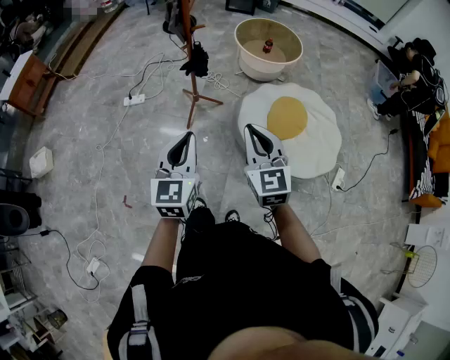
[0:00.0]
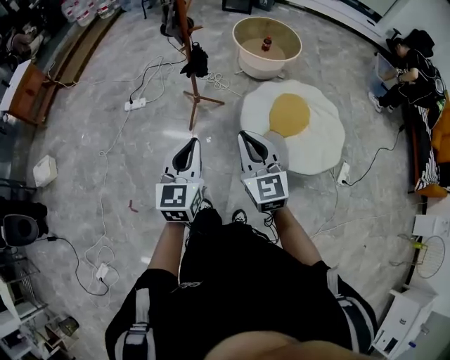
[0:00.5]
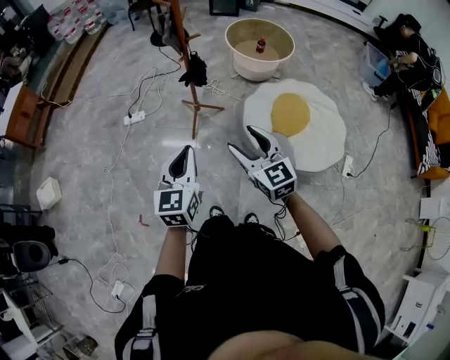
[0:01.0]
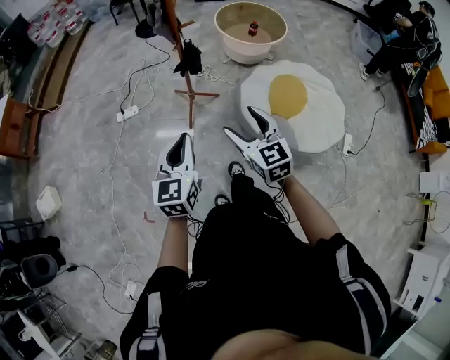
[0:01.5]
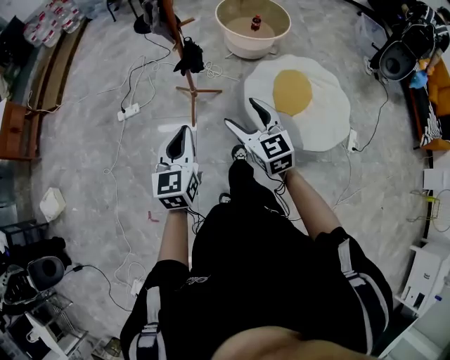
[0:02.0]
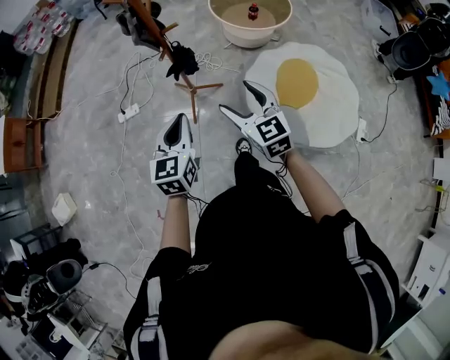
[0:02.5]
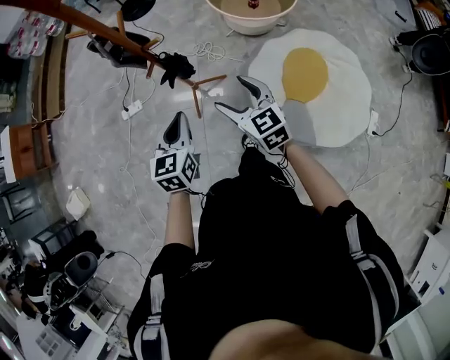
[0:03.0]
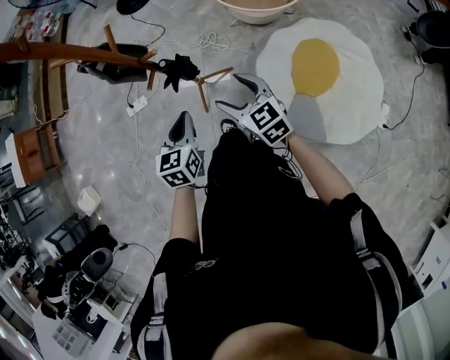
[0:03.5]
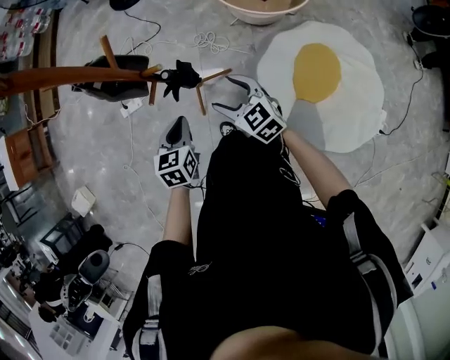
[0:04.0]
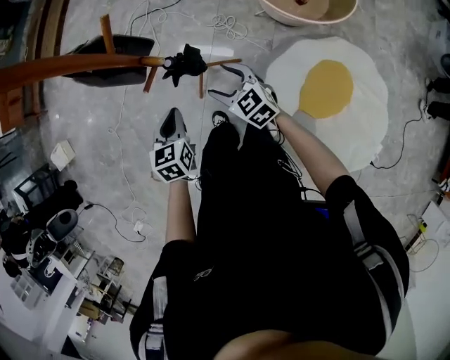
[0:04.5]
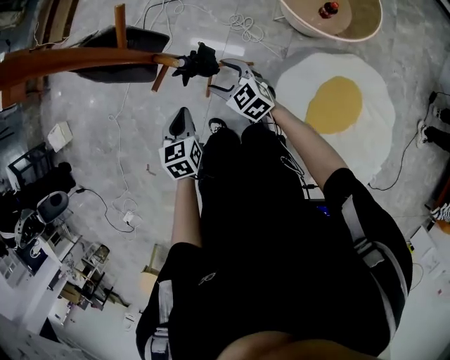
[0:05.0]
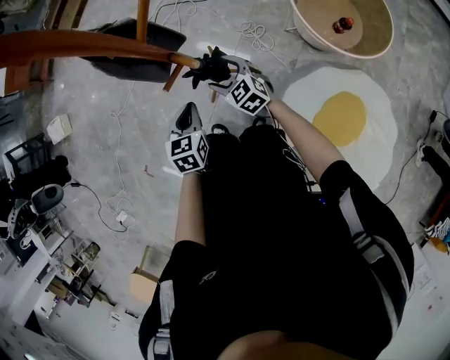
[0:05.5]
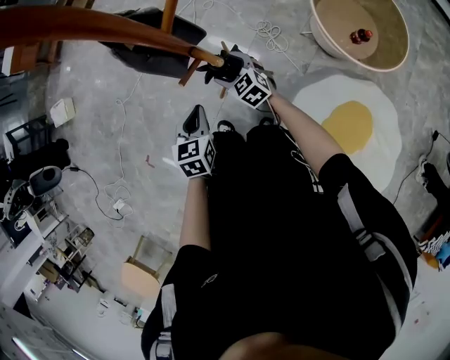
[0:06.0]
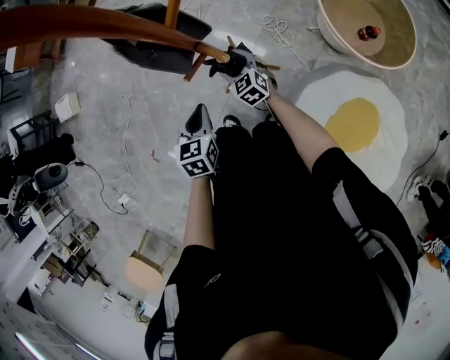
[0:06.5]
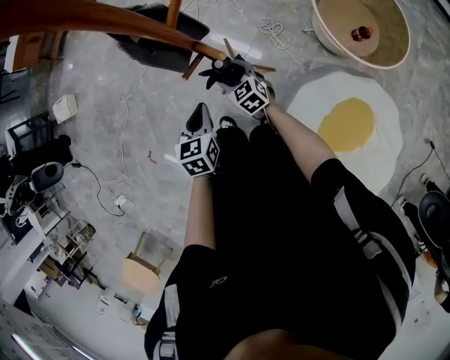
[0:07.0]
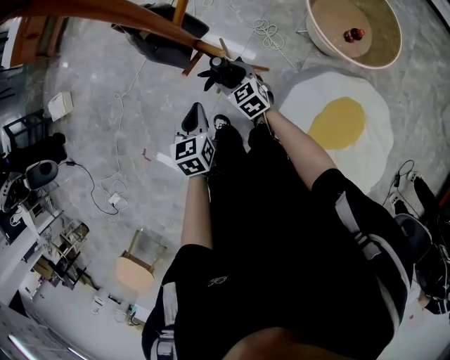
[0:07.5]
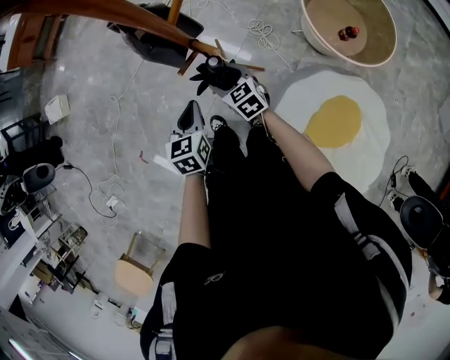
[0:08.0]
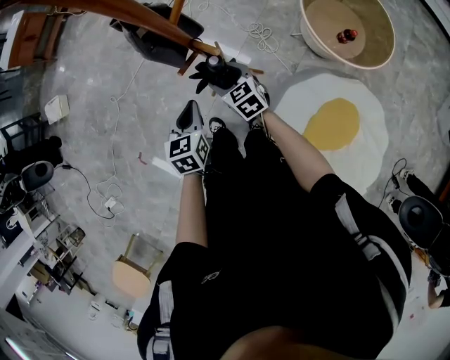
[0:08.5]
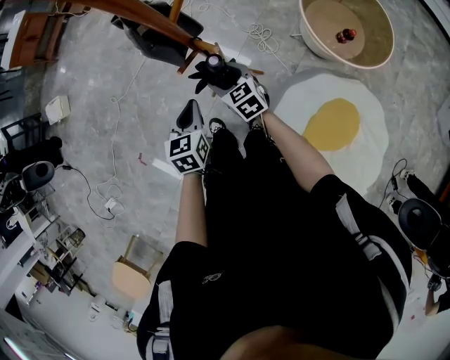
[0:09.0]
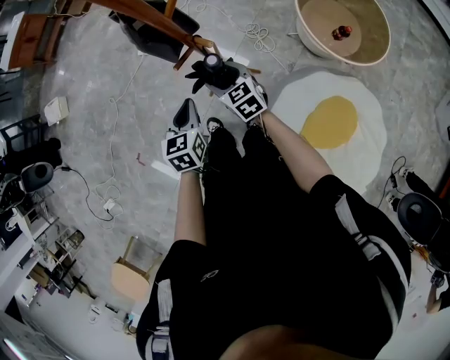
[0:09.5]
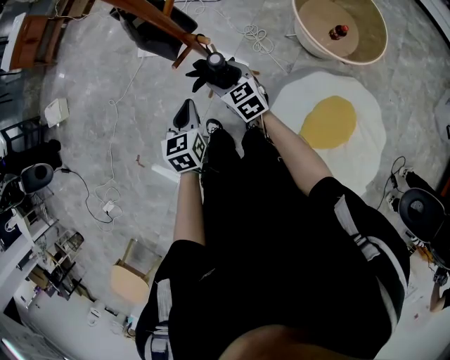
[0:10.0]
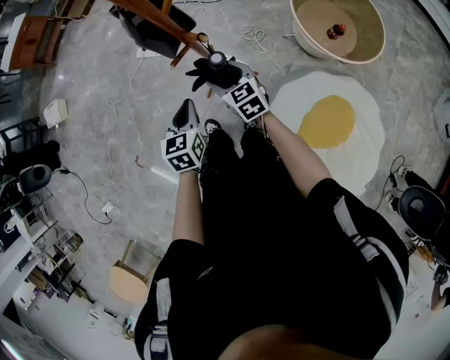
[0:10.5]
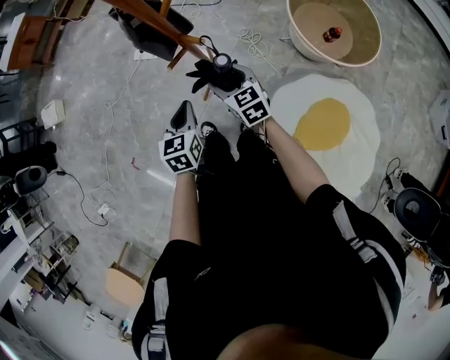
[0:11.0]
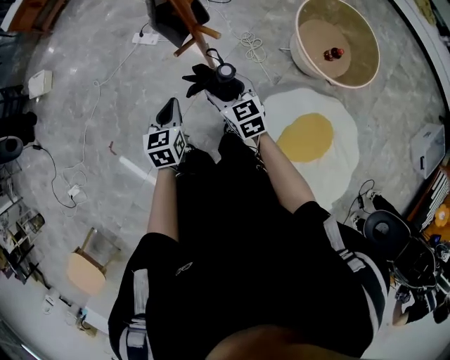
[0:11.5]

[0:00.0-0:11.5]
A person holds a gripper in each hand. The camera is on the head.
0:00.0 to 0:02.0: Both grippers travel together forward, to the left and downward, approximately 15 cm. The right gripper opens up.
0:02.0 to 0:04.0: Both grippers travel together forward and downward, some 40 cm. The right gripper turns by approximately 20 degrees, while the left gripper rotates about 30 degrees.
0:04.0 to 0:06.0: The right gripper changes place by some 30 cm, and changes its angle by approximately 30 degrees. Meanwhile the left gripper travels downward by roughly 10 cm, and turns by approximately 30 degrees.
0:06.0 to 0:07.5: The left gripper shifts by some 5 cm; the right gripper goes roughly 5 cm backward.
0:07.5 to 0:09.5: The right gripper moves upward, about 5 cm.
0:09.5 to 0:11.5: The right gripper shifts about 5 cm backward.

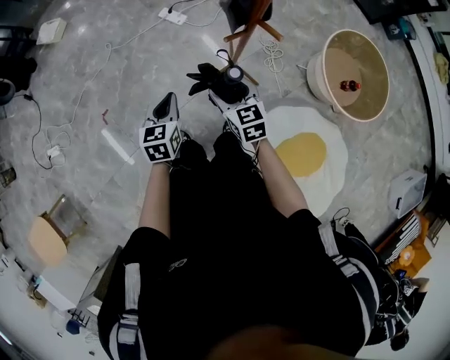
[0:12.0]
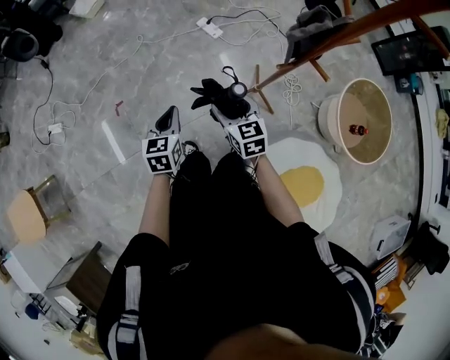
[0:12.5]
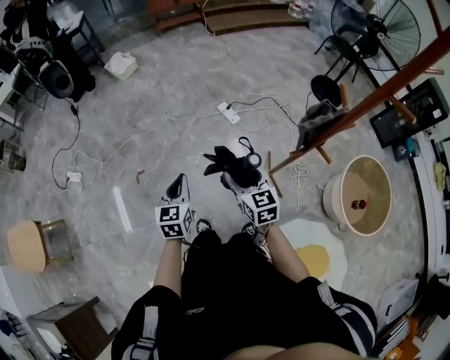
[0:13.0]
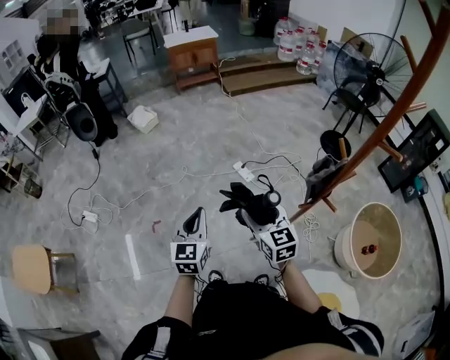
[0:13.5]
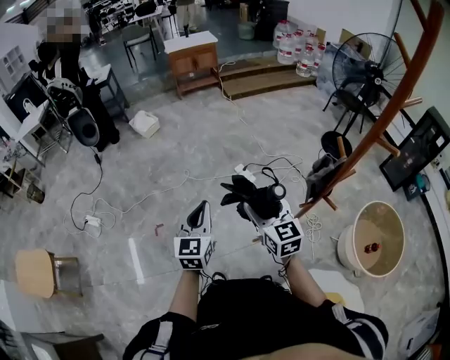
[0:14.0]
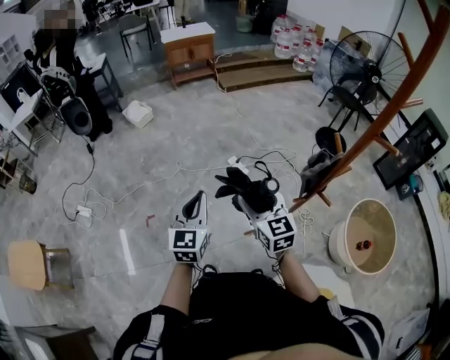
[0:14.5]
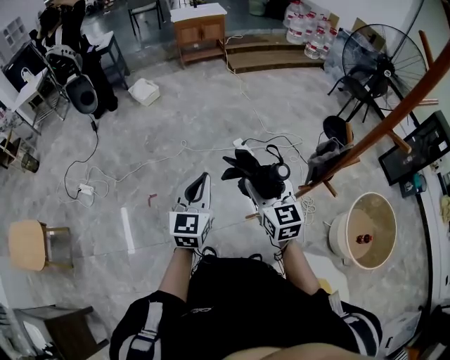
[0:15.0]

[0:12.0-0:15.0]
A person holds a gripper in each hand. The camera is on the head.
0:12.0 to 0:13.5: The right gripper shifts some 30 cm upward, to the left and forward. Meanwhile the left gripper heads upward and to the left, covering roughly 30 cm, and changes its angle by roughly 30 degrees.
0:13.5 to 0:15.0: The grippers make only small movements.

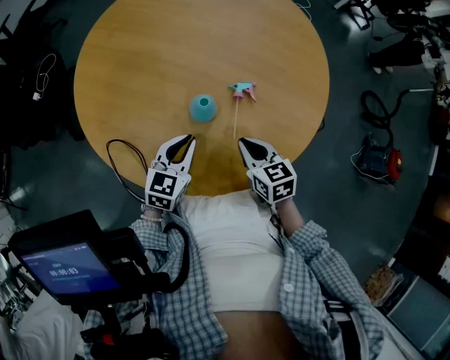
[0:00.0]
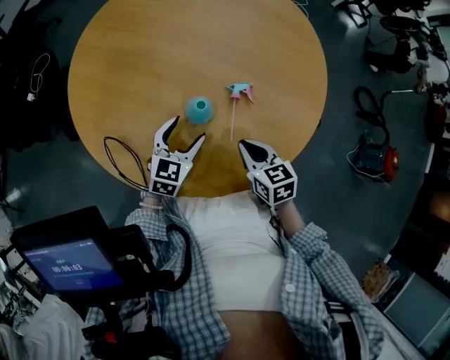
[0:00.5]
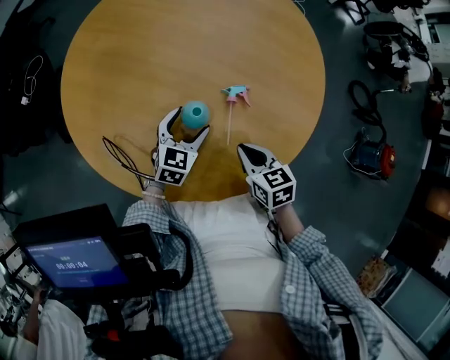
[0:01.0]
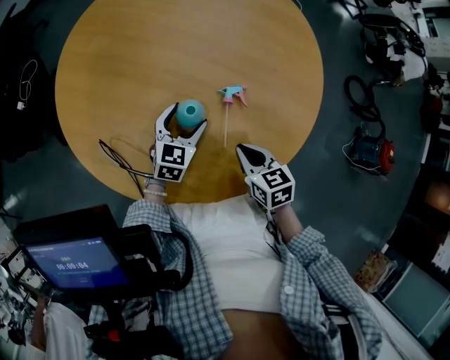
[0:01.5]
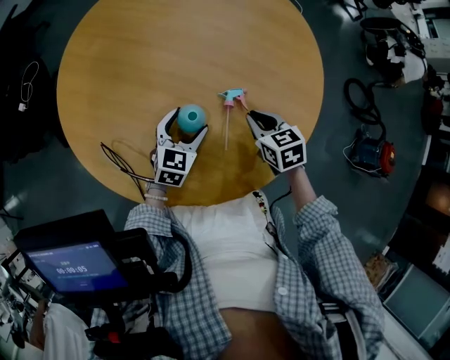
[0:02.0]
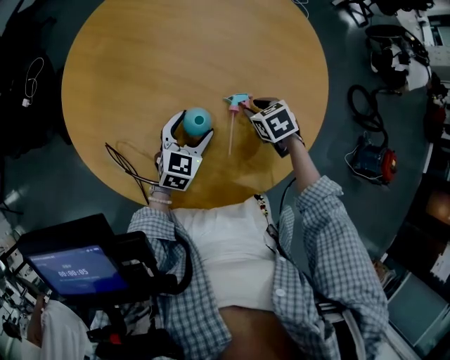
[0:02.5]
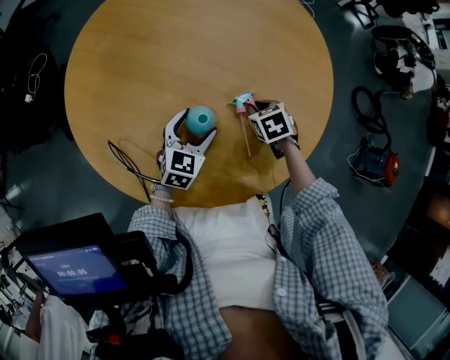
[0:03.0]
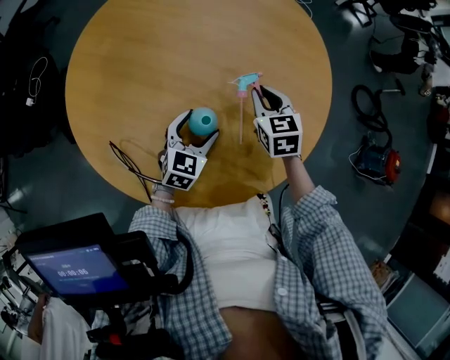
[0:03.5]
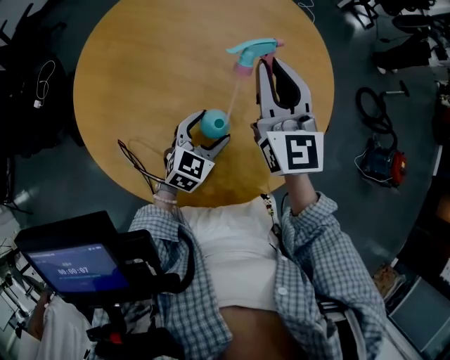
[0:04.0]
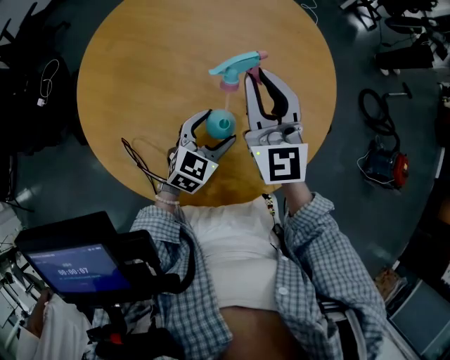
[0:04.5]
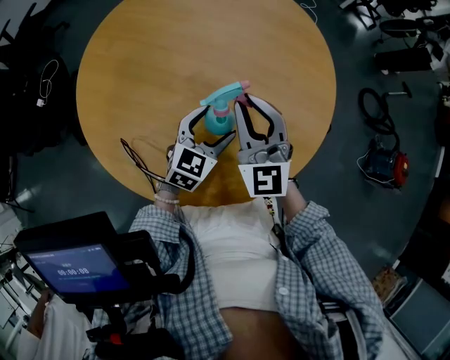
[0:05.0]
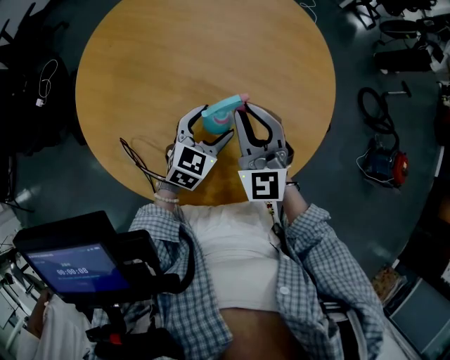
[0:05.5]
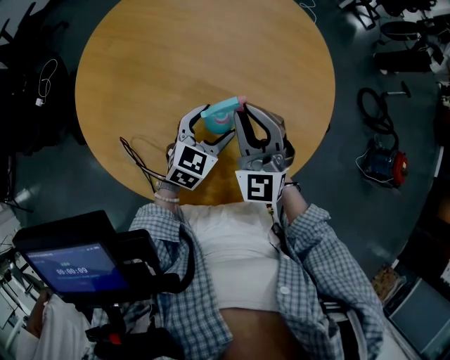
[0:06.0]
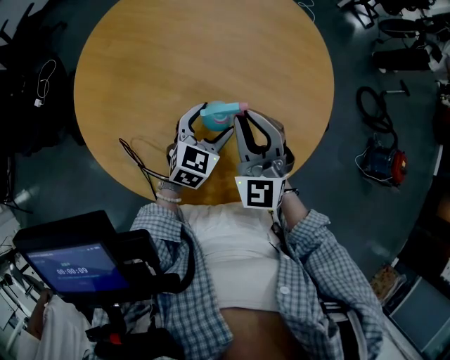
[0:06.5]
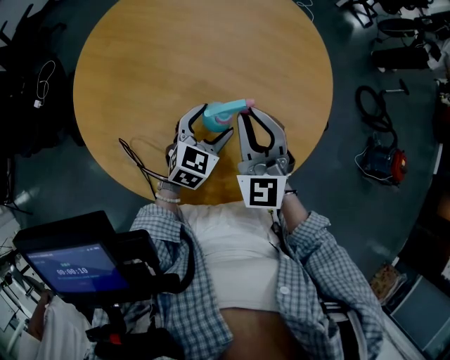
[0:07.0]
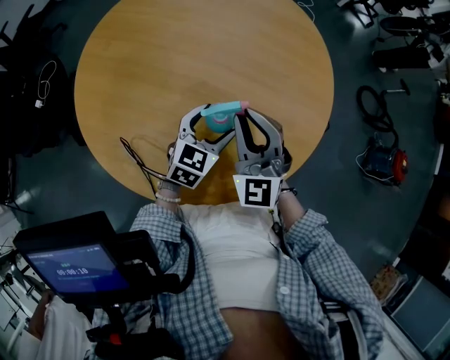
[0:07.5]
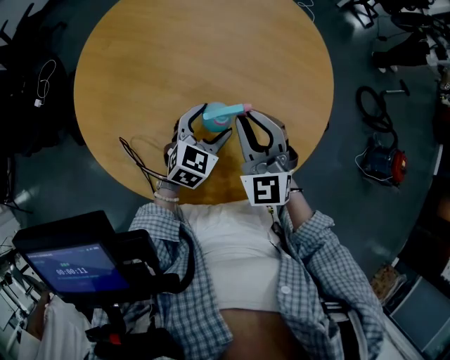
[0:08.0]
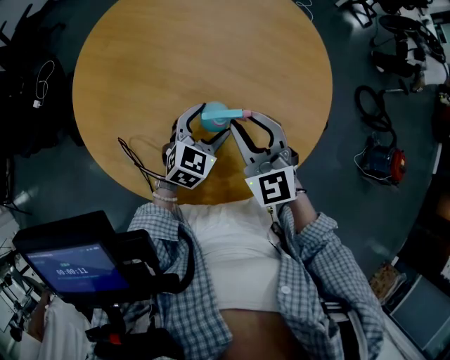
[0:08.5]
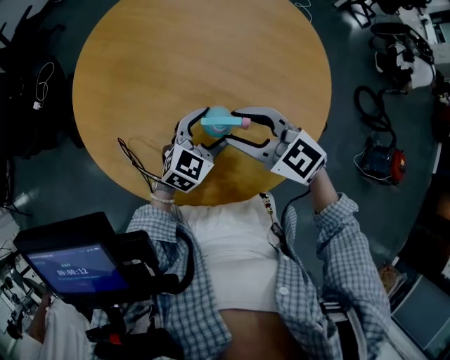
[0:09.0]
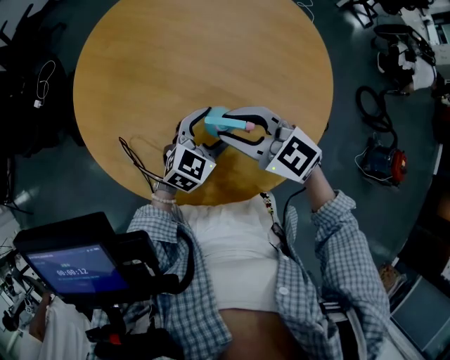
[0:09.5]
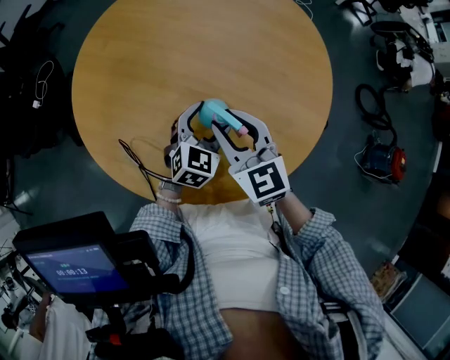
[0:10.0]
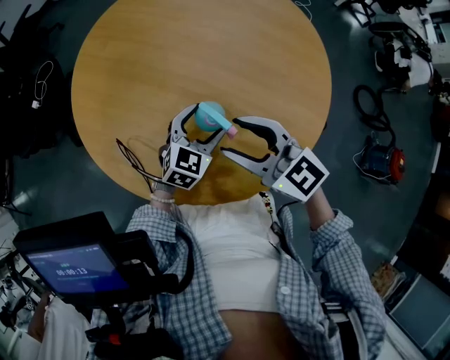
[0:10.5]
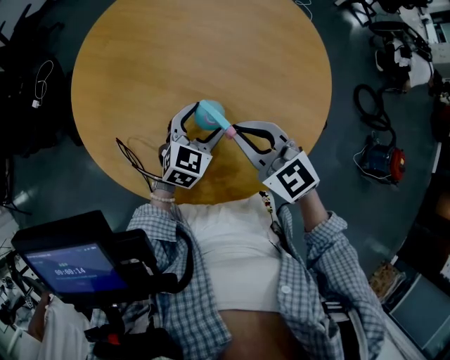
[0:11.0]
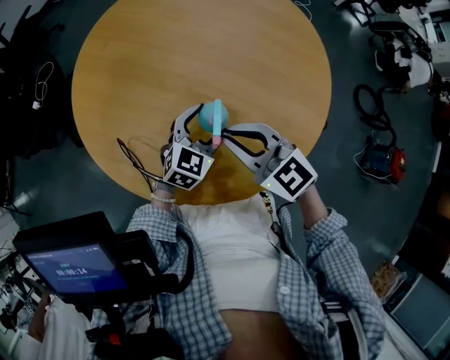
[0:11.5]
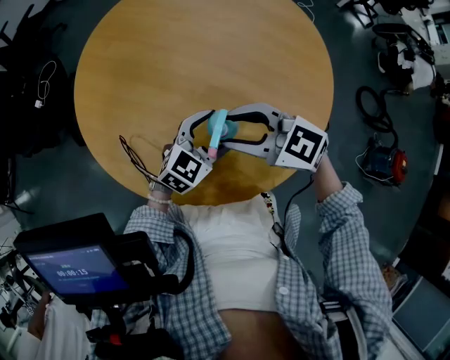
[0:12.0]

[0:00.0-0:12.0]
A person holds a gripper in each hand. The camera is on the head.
0:00.0 to 0:02.0: Both grippers move forward, approximately 5 cm. The left gripper opens its fingers.
0:02.0 to 0:04.0: The right gripper heads upward, covering some 25 cm, and angles its fingers upward, by some 50 degrees.
0:04.0 to 0:06.0: The right gripper travels downward and backward by some 10 cm, and changes its angle by roughly 30 degrees.
0:06.0 to 0:08.0: The grippers move only a little.
0:08.0 to 0:10.0: The right gripper rotates approximately 30 degrees.
0:10.0 to 0:12.0: The right gripper swivels about 40 degrees, and closes, then opens again.
